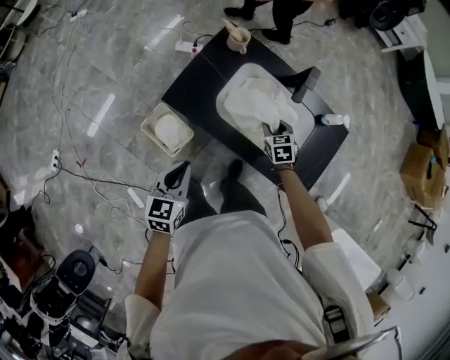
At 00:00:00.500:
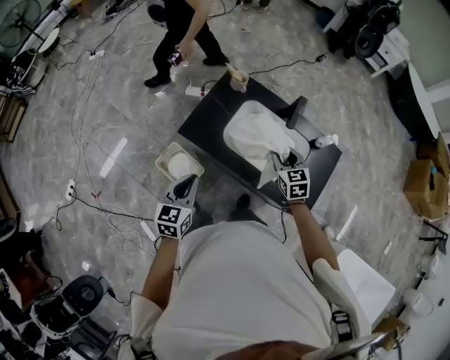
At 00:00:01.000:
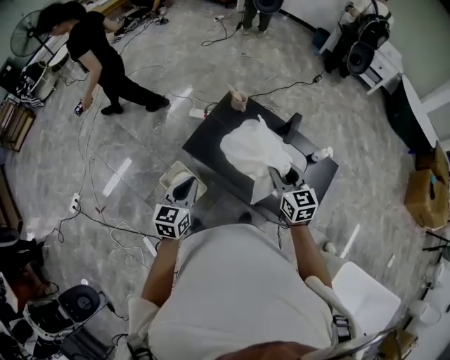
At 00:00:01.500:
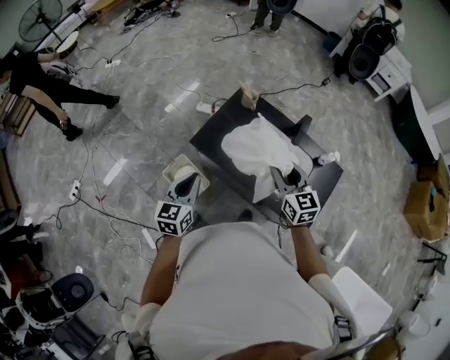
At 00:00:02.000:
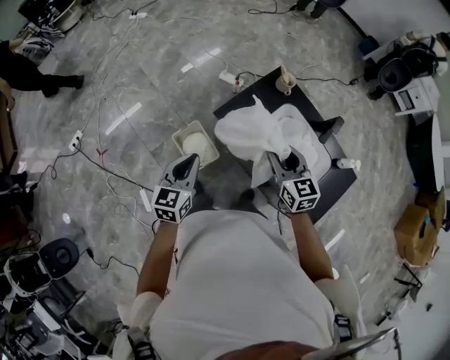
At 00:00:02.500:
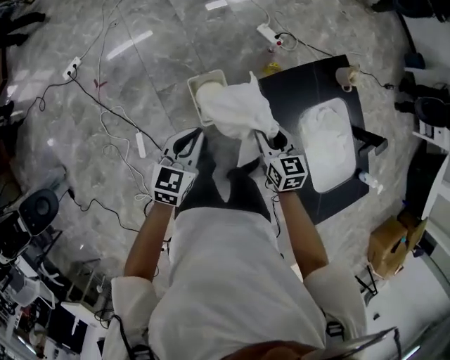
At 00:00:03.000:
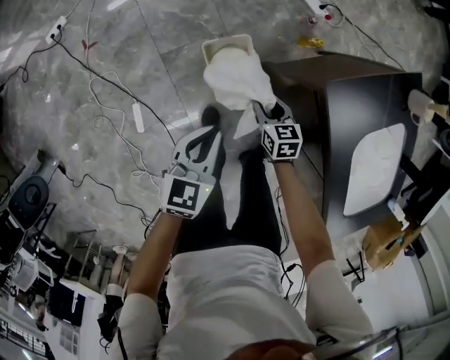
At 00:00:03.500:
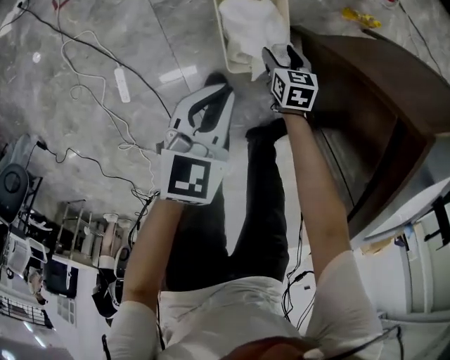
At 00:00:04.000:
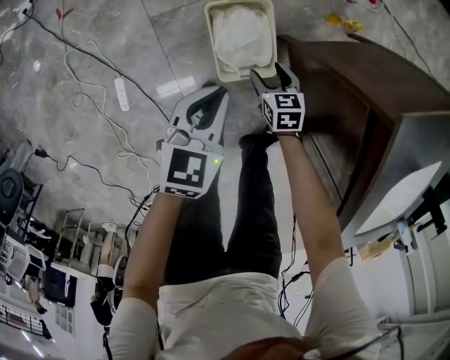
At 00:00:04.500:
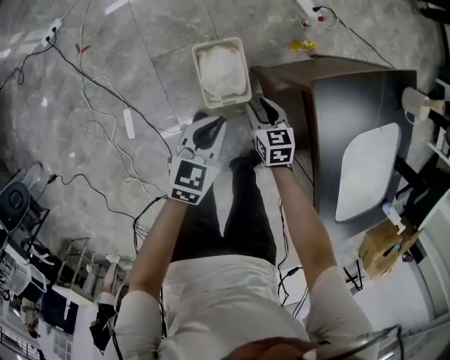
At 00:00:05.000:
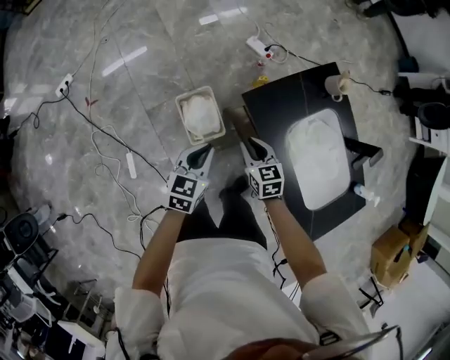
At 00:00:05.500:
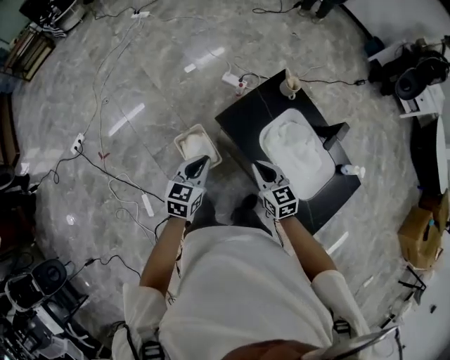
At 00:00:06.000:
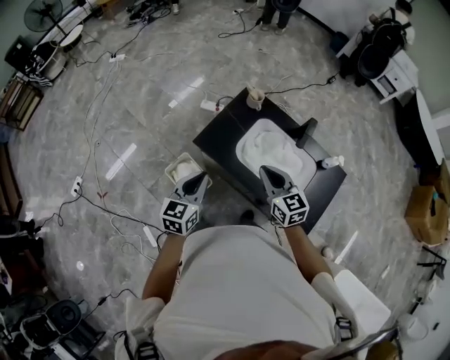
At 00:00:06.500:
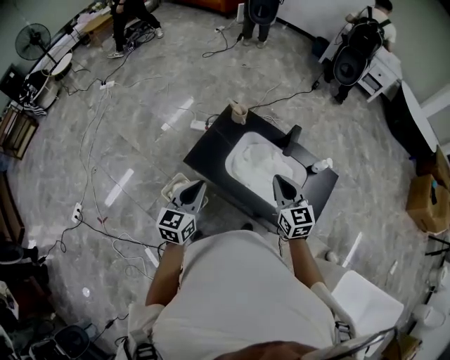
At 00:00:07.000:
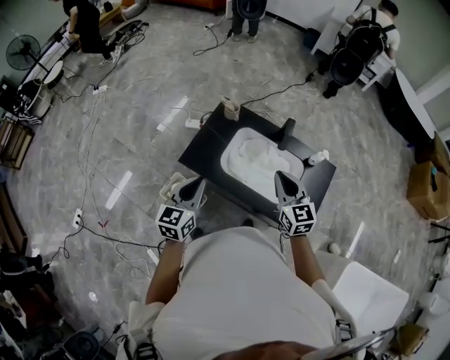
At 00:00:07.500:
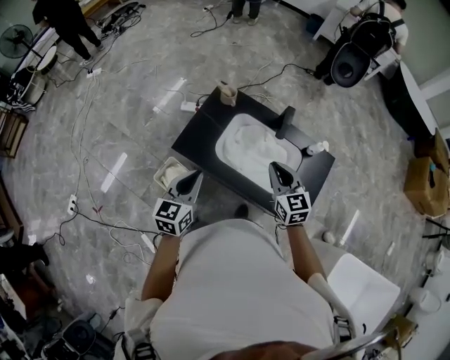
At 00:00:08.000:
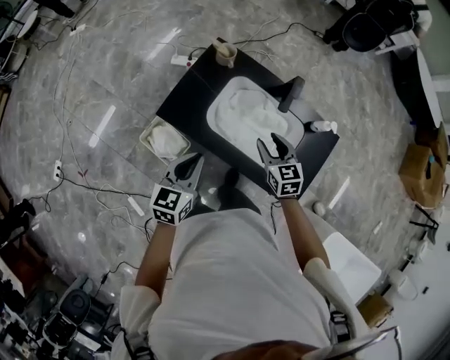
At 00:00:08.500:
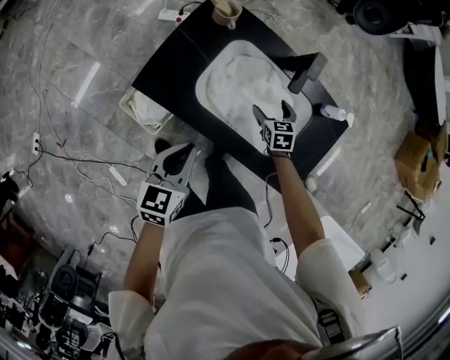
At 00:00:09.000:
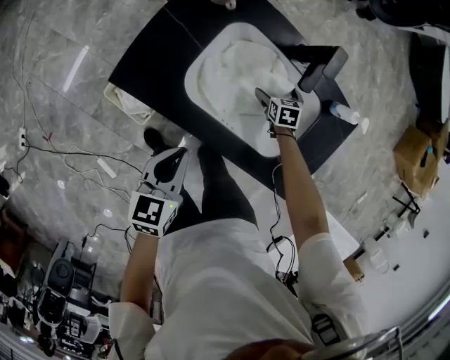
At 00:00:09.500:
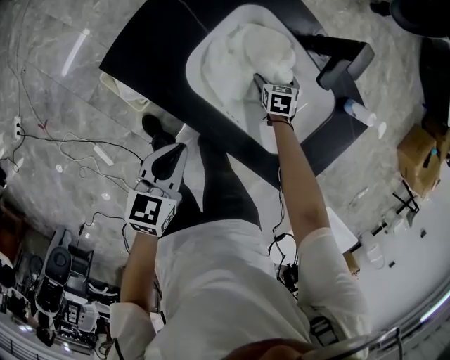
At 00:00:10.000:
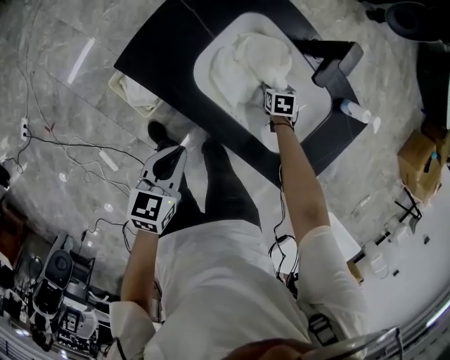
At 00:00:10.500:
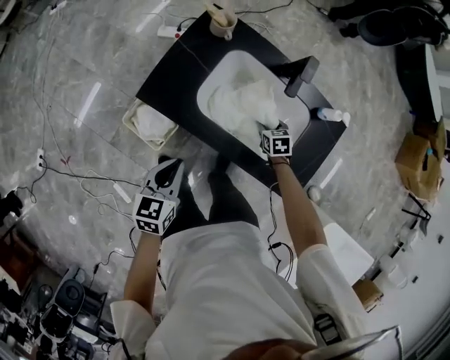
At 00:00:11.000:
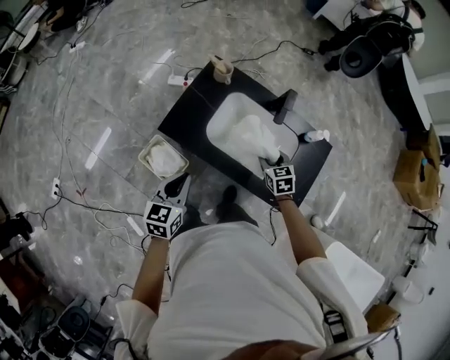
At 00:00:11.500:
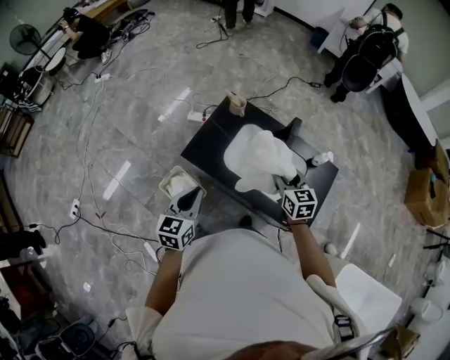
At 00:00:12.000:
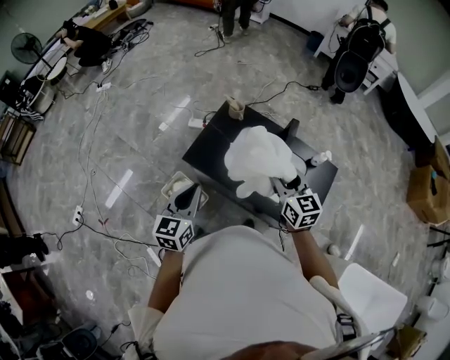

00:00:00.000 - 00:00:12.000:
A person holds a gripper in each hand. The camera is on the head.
00:00:00.000 - 00:00:02.000: The right gripper travels upward and to the left by about 35 cm, and angles its fingers upward, by about 30 degrees; the left gripper shifts roughly 15 cm to the left and upward.
00:00:02.000 - 00:00:04.000: Both grippers travel together downward, approximately 70 cm. The left gripper swivels some 20 degrees; the right gripper tilts its fingers roughly 40 degrees downward.
00:00:04.000 - 00:00:06.000: The grippers both shift upward by some 70 cm. The left gripper swivels some 30 degrees, while the right gripper angles its fingers upward, by some 40 degrees, and closes its fingers.
00:00:06.000 - 00:00:08.000: Both grippers move to the right, downward and forward, some 15 cm.
00:00:08.000 - 00:00:10.000: The right gripper is displaced downward by approximately 40 cm, tilts its fingers roughly 40 degrees downward, and opens, then closes once more, while the left gripper is displaced downward by roughly 20 cm.
00:00:10.000 - 00:00:12.000: The right gripper is displaced upward by approximately 60 cm, and angles its fingers upward, by some 60 degrees; the left gripper shifts roughly 30 cm upward, and turns by approximately 30 degrees.

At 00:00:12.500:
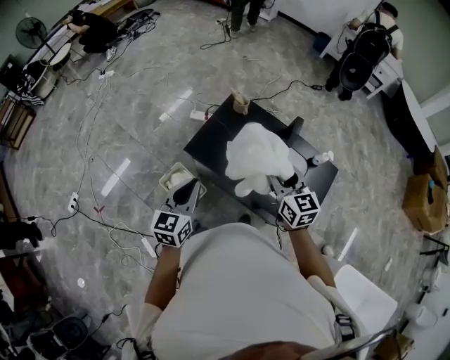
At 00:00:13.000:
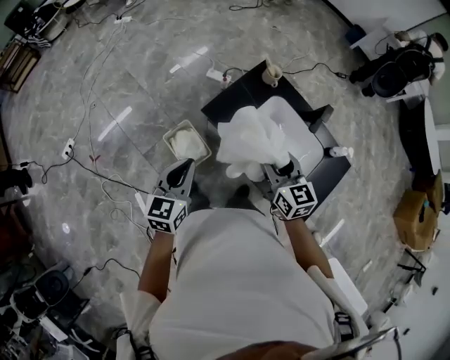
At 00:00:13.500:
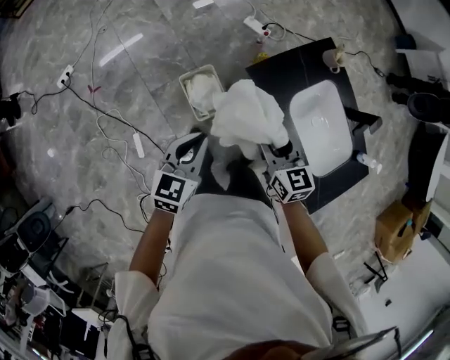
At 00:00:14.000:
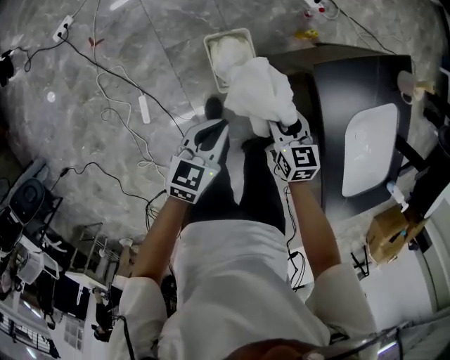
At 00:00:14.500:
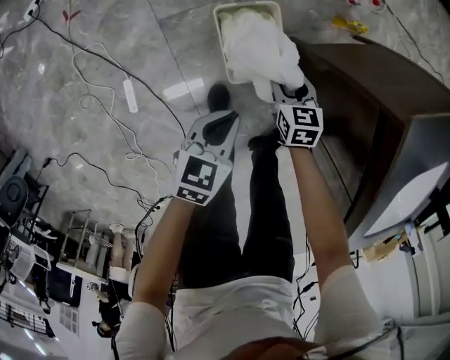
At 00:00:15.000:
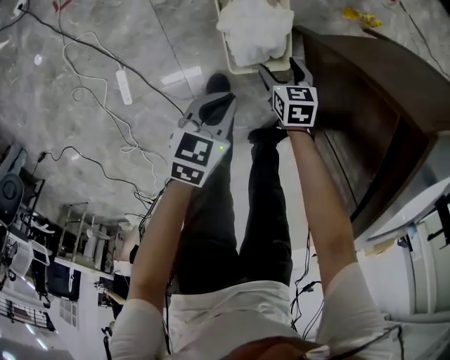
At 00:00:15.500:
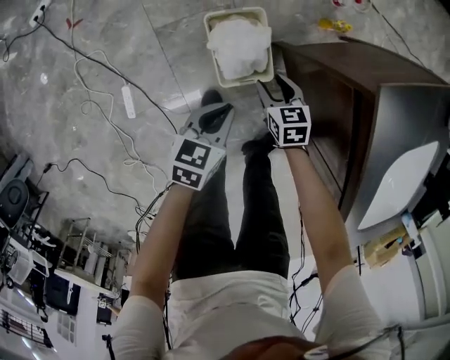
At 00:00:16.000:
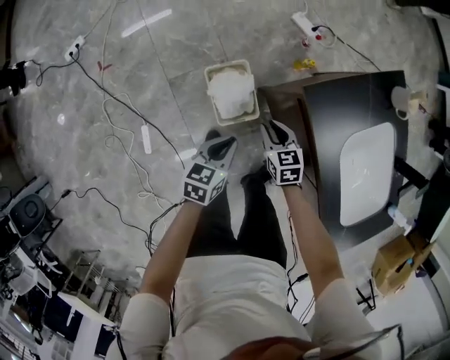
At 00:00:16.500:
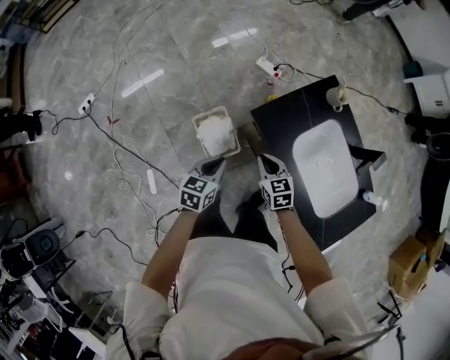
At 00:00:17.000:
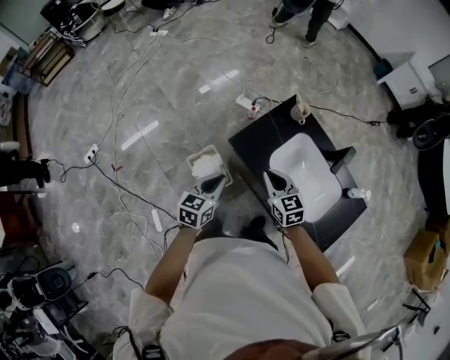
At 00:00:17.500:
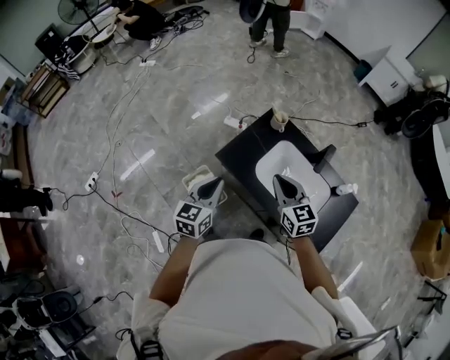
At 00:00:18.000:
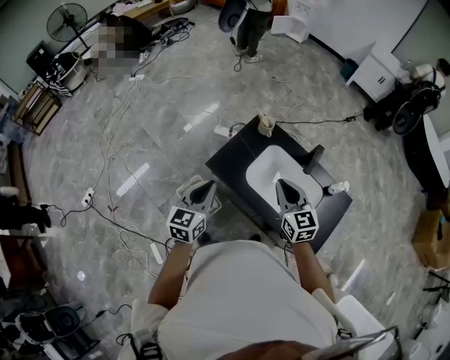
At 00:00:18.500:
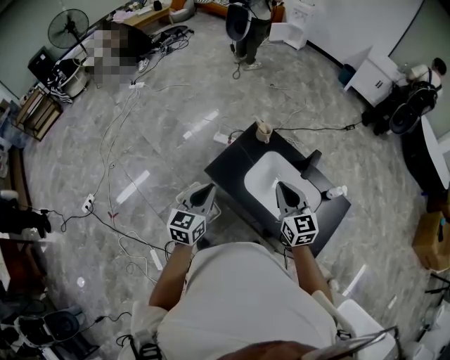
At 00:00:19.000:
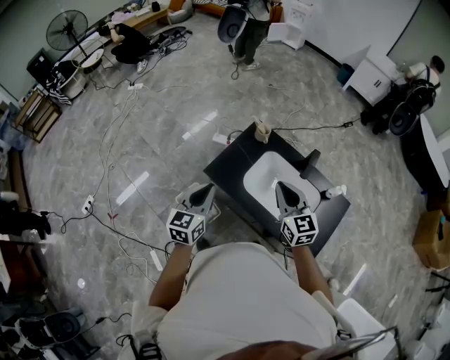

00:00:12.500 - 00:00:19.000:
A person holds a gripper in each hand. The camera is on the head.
00:00:12.500 - 00:00:14.500: Both grippers move downward and to the left, some 80 cm. The left gripper swivels approximately 40 degrees. Meanwhile the right gripper angles its fingers downward, by about 40 degrees.
00:00:14.500 - 00:00:17.000: The two grippers go approximately 60 cm upward. The left gripper changes its angle by approximately 20 degrees. Meanwhile the right gripper swivels roughly 30 degrees.
00:00:17.000 - 00:00:19.000: Both grippers travel together upward and to the right, some 20 cm. The right gripper changes its angle by some 20 degrees.

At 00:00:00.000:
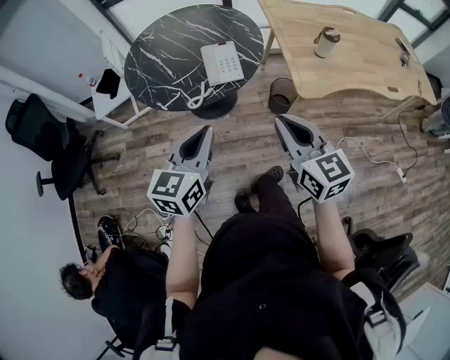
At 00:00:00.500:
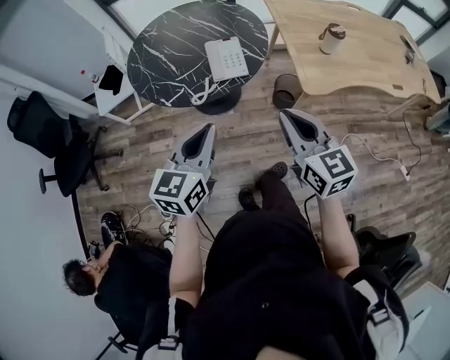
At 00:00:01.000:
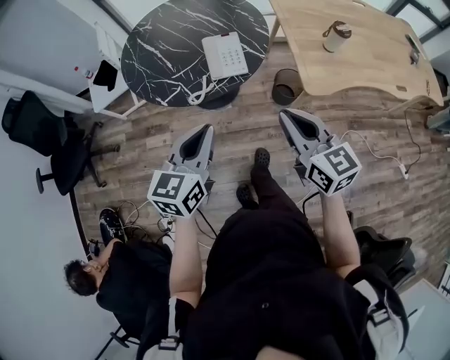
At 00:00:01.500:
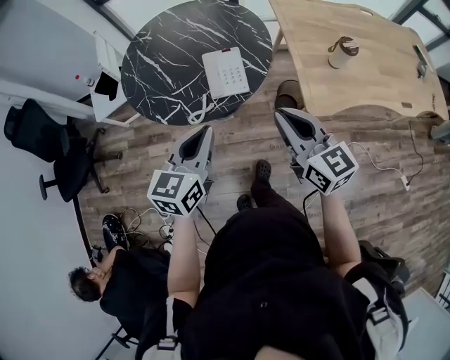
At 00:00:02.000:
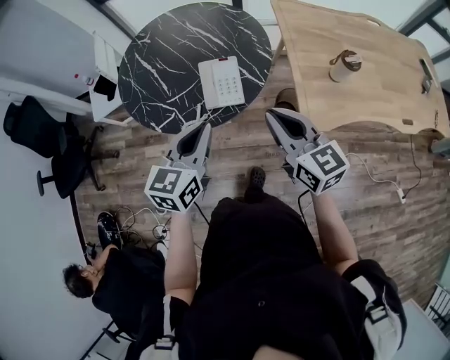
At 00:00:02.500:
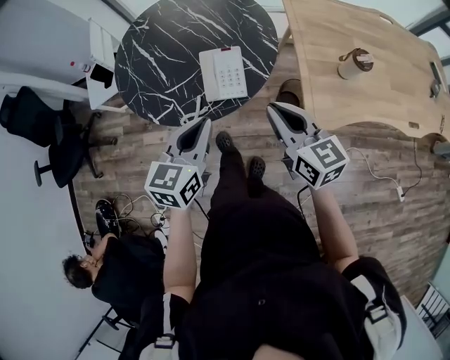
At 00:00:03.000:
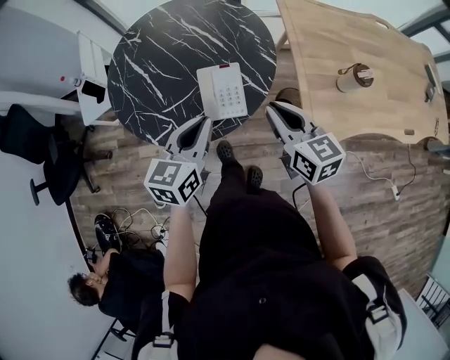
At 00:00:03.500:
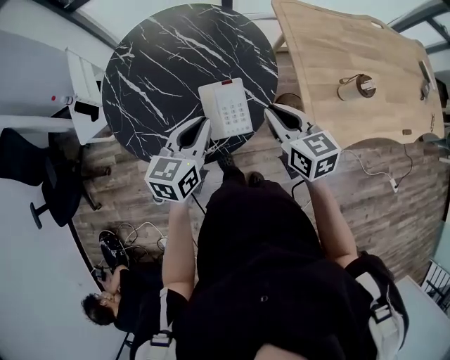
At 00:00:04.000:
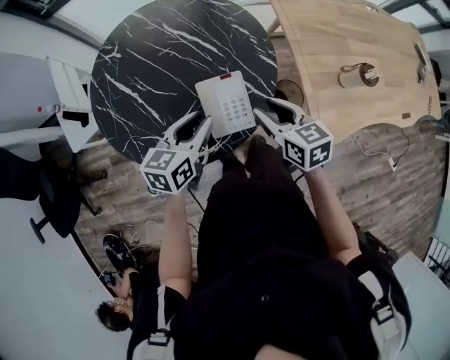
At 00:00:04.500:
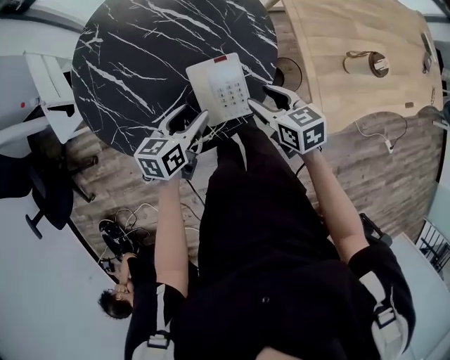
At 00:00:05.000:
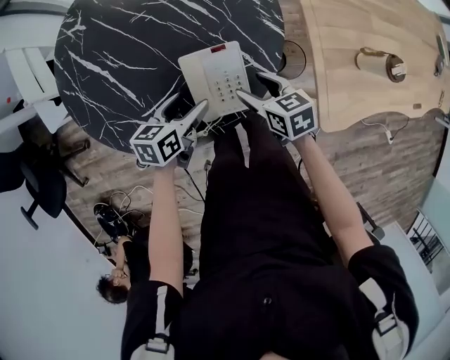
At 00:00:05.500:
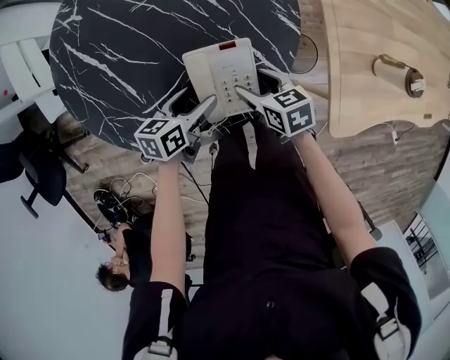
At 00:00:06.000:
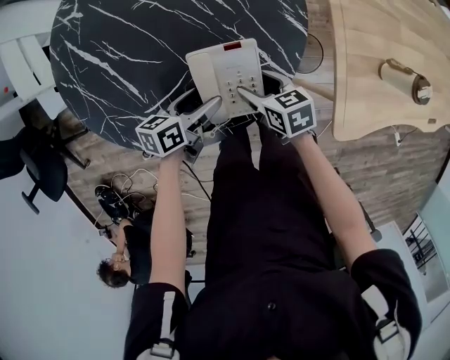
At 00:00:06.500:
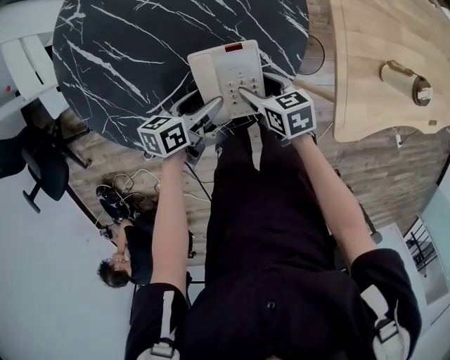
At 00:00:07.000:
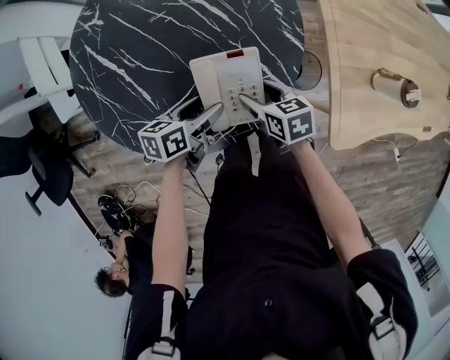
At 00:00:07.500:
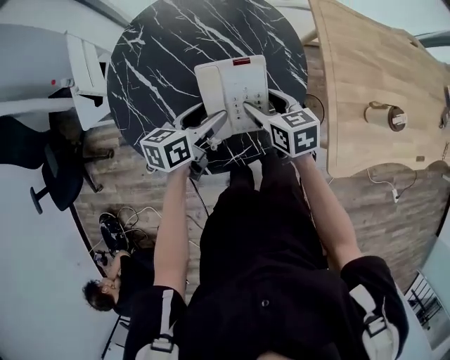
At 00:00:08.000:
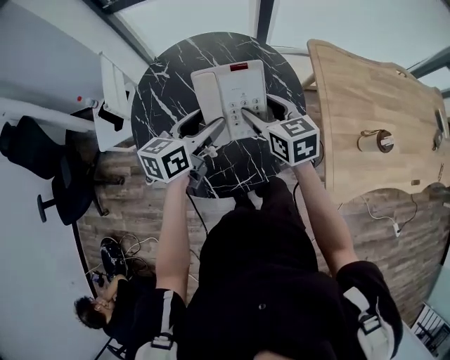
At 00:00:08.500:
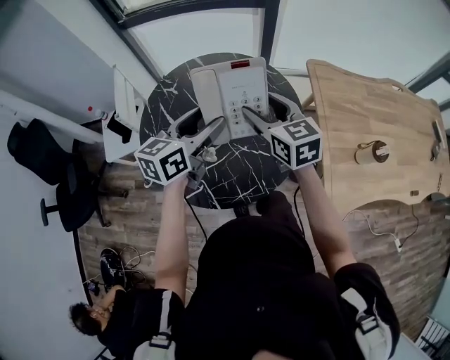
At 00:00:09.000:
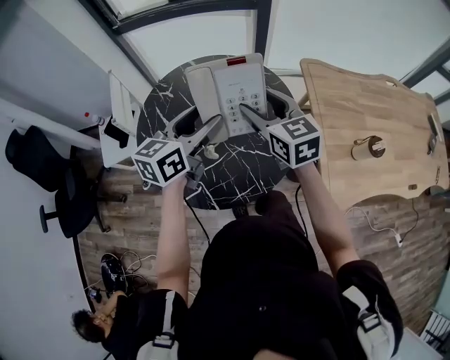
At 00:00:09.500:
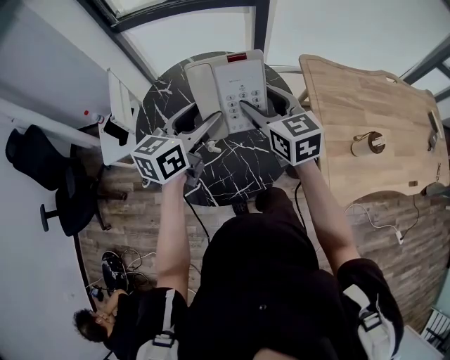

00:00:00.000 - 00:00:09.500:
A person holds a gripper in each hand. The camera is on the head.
00:00:00.000 - 00:00:02.000: The grippers both shift forward by roughly 20 cm.
00:00:02.000 - 00:00:04.000: Both grippers travel together forward and downward, roughly 25 cm. The left gripper rotates approximately 20 degrees, while the right gripper changes its angle by approximately 30 degrees, and opens up.
00:00:04.000 - 00:00:05.500: The two grippers go some 20 cm downward. The right gripper turns by about 20 degrees, and opens; the left gripper changes its angle by about 30 degrees, and opens.
00:00:05.500 - 00:00:07.500: The left gripper travels upward by some 15 cm; the right gripper goes about 15 cm upward and forward.
00:00:07.500 - 00:00:09.500: Both grippers travel together upward, some 20 cm. The left gripper changes its angle by roughly 30 degrees. Meanwhile the right gripper swivels approximately 30 degrees.
